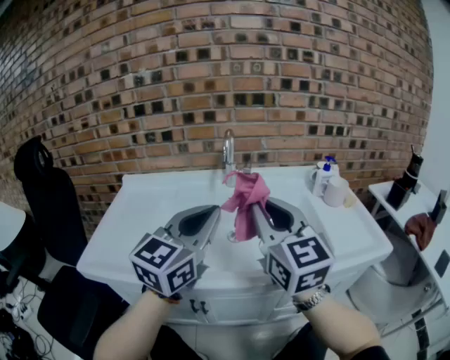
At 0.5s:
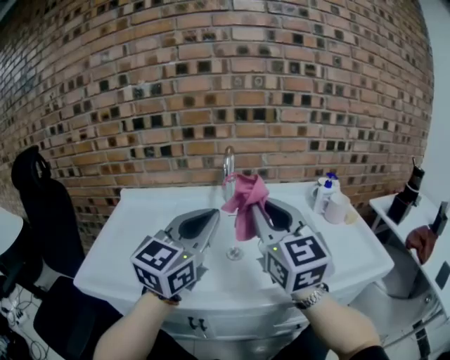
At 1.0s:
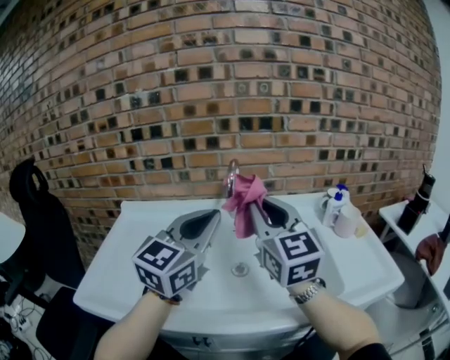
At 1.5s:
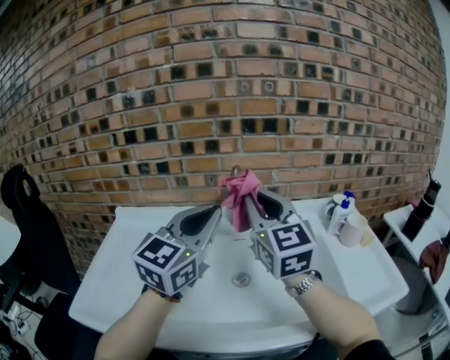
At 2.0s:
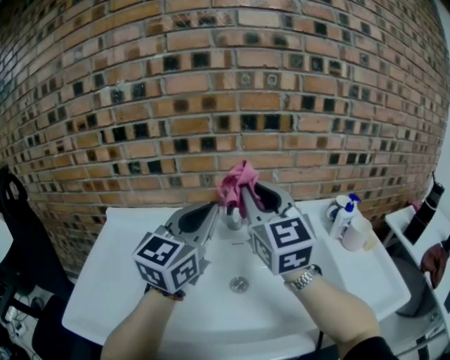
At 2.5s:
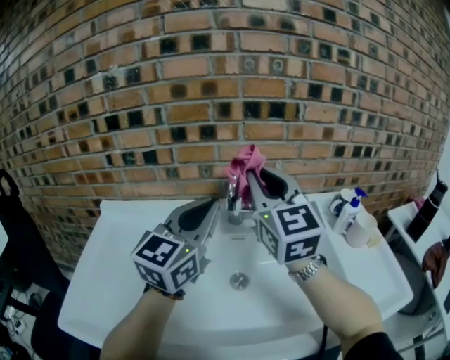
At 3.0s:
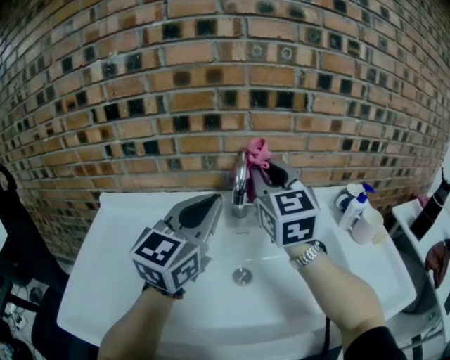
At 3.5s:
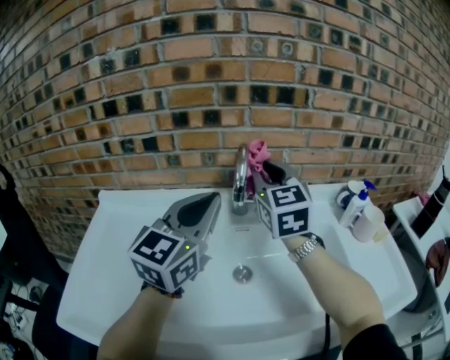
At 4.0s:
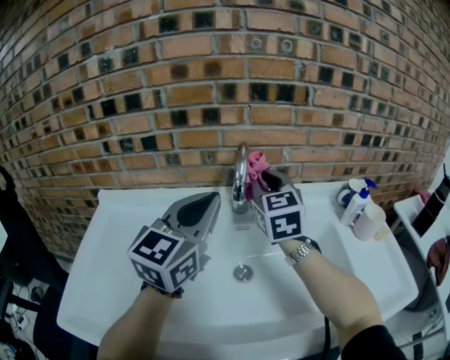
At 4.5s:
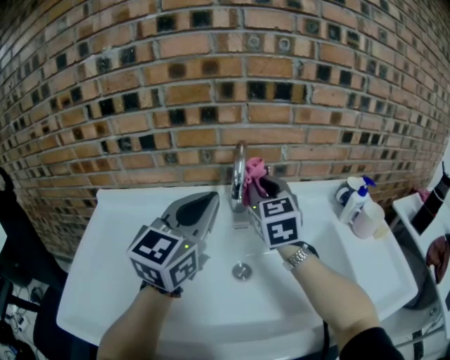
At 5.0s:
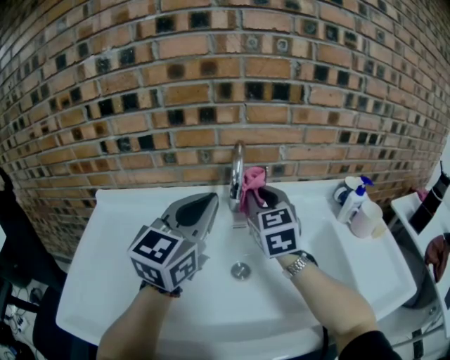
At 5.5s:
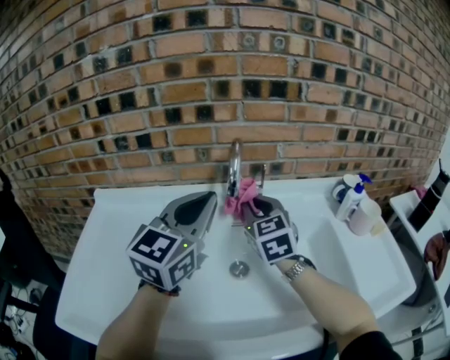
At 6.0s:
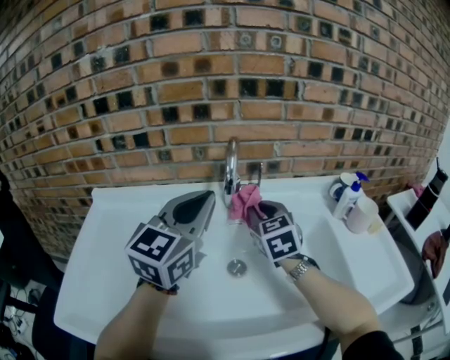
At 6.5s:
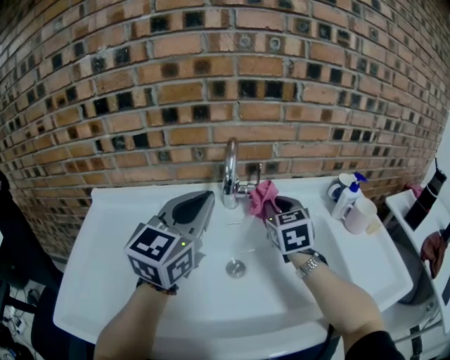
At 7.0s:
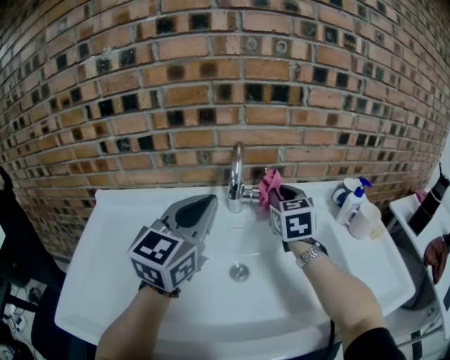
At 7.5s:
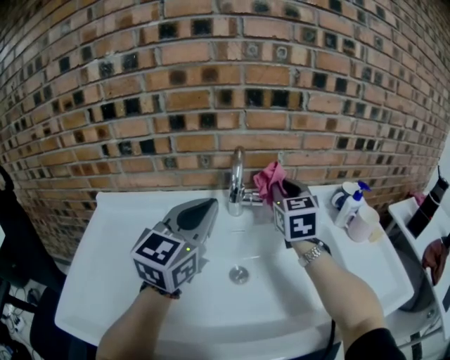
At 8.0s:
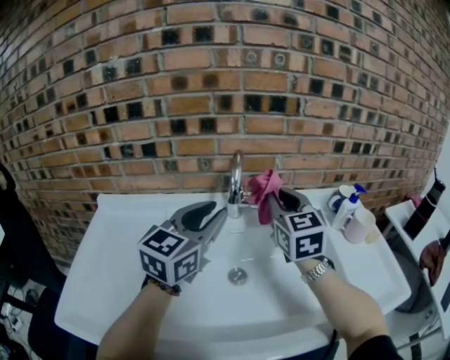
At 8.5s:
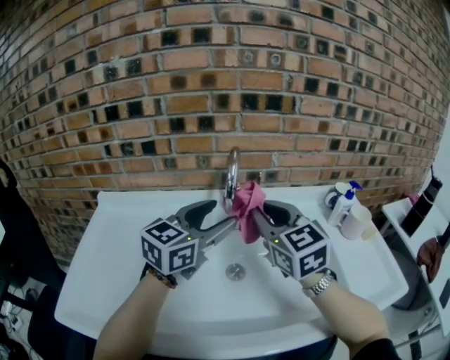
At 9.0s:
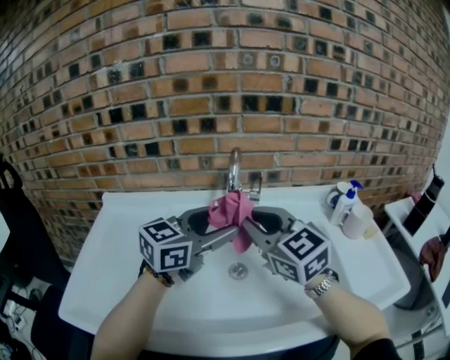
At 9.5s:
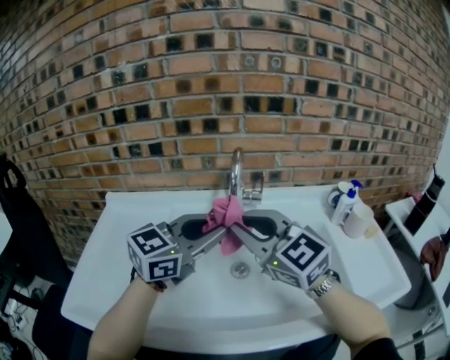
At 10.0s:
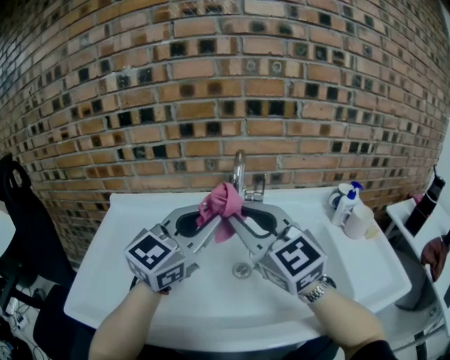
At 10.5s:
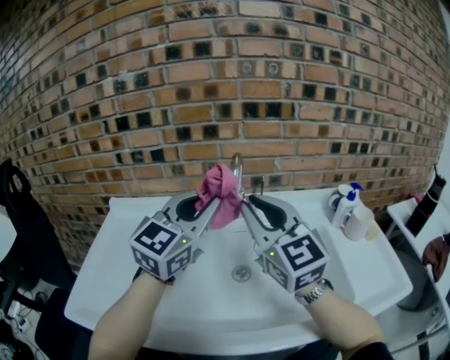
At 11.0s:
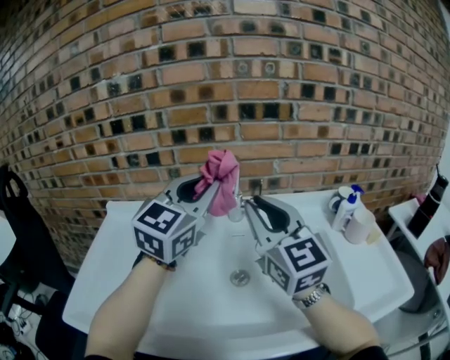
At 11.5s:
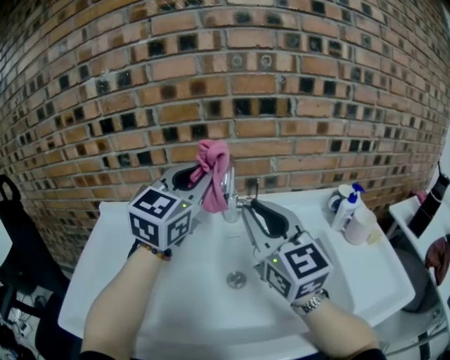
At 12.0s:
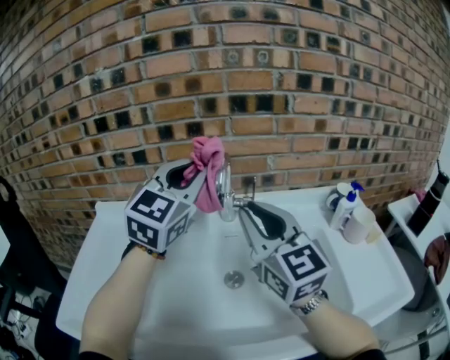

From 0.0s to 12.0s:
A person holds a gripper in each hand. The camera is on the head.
From 0.0s to 2.0s: Both grippers move forward, some 20 cm.
From 2.0s to 4.0s: The right gripper travels forward and downward by some 15 cm.
From 4.0s to 6.0s: The right gripper shifts some 10 cm downward.
From 6.0s to 8.0s: The right gripper travels upward by roughly 10 cm.
From 8.0s to 10.0s: The right gripper goes some 20 cm backward and to the left, and swivels roughly 30 degrees. Meanwhile the left gripper heads backward, covering some 5 cm, and opens and closes again.
From 10.0s to 12.0s: The right gripper is displaced to the right and forward by approximately 10 cm, while the left gripper moves forward and upward, about 15 cm.

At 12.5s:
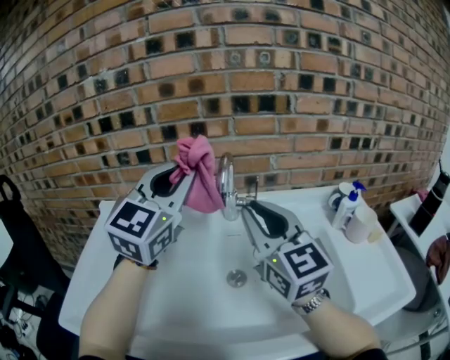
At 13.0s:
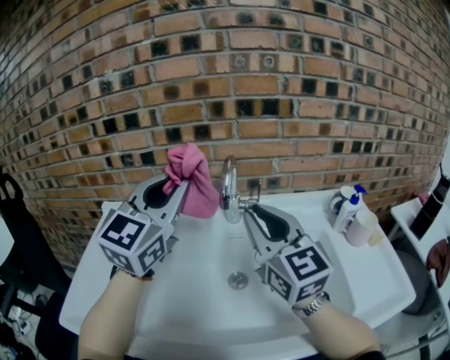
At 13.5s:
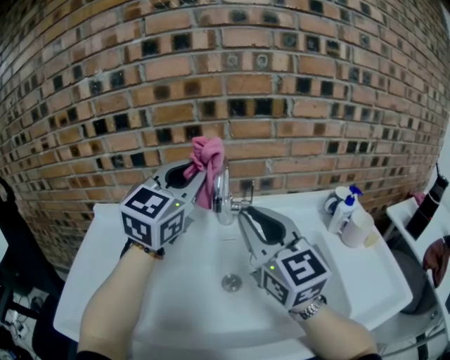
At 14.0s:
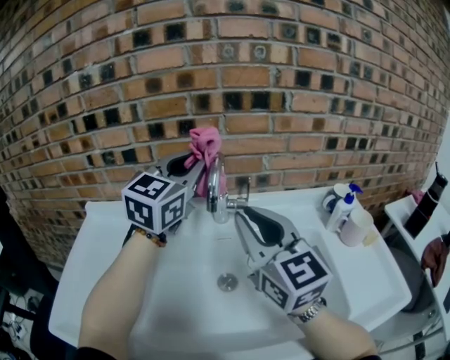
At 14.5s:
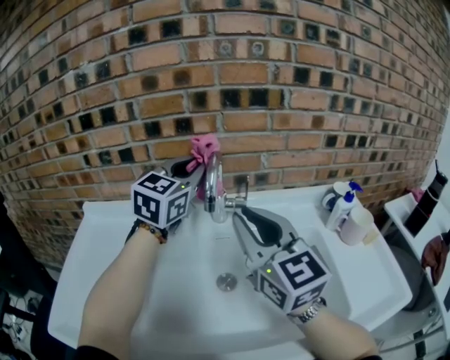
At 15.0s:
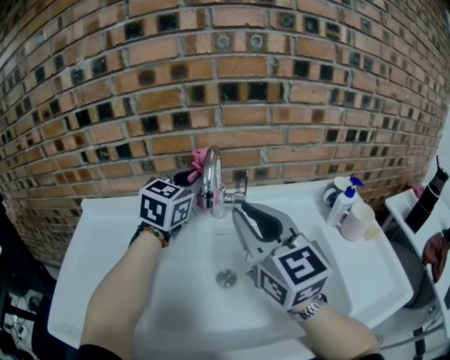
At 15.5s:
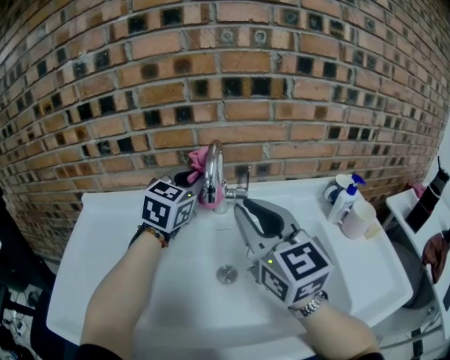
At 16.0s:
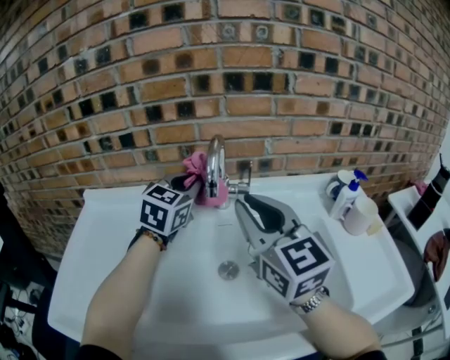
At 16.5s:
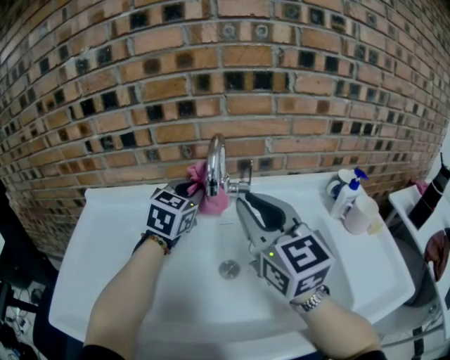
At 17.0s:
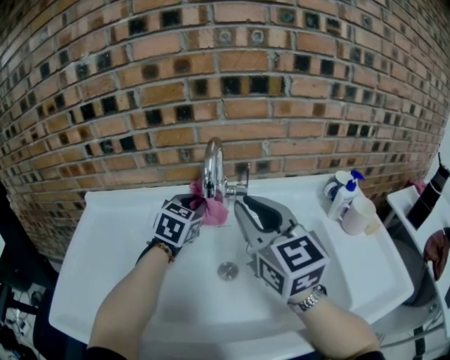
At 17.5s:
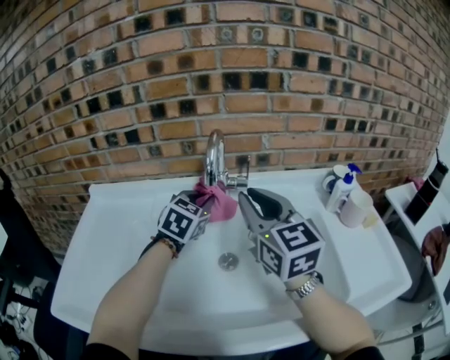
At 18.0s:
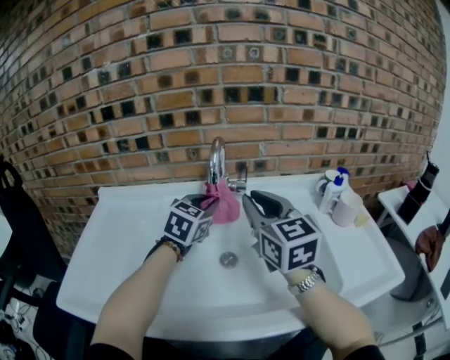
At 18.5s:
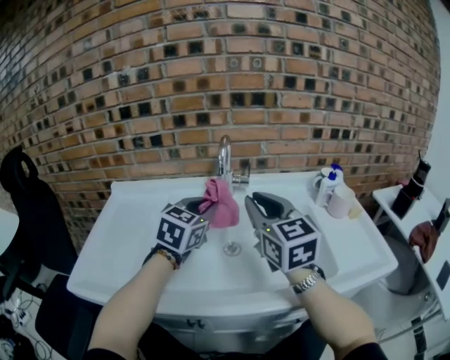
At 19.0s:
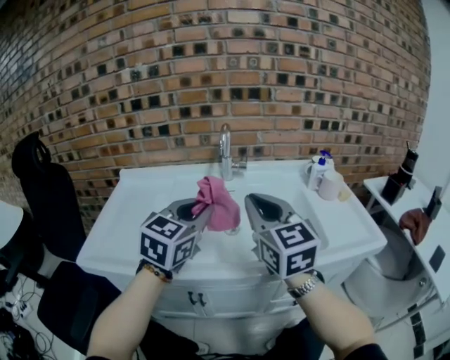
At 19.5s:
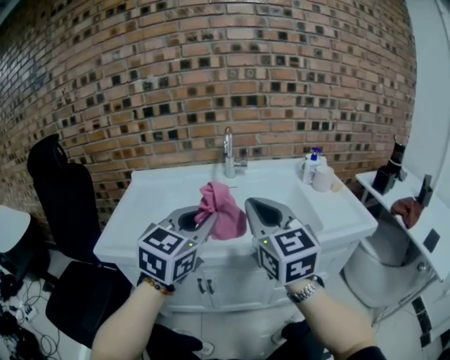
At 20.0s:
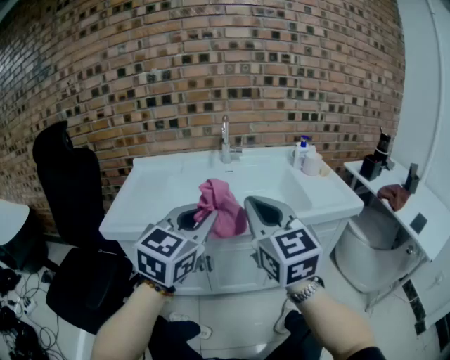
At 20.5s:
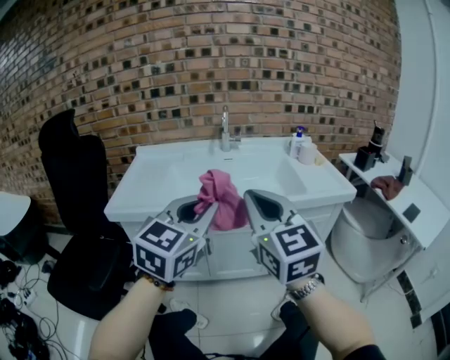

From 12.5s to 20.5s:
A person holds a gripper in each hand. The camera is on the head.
From 12.5s to 14.5s: The left gripper travels forward and downward by approximately 15 cm.
From 14.5s to 16.5s: The left gripper goes roughly 10 cm downward.
From 16.5s to 18.5s: The right gripper goes some 10 cm backward; the left gripper is displaced backward by some 15 cm.
From 18.5s to 20.5s: Both grippers move backward, some 40 cm.

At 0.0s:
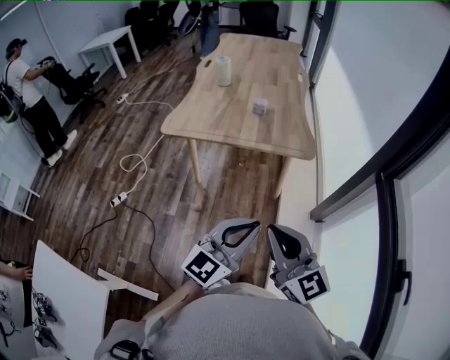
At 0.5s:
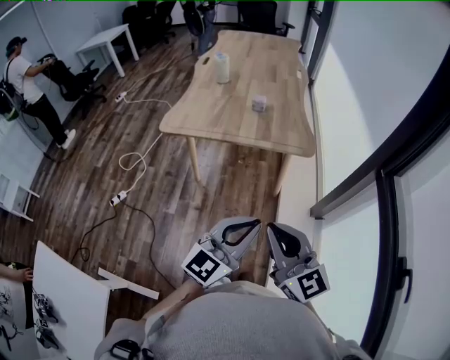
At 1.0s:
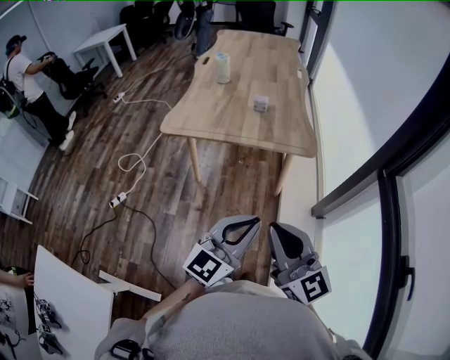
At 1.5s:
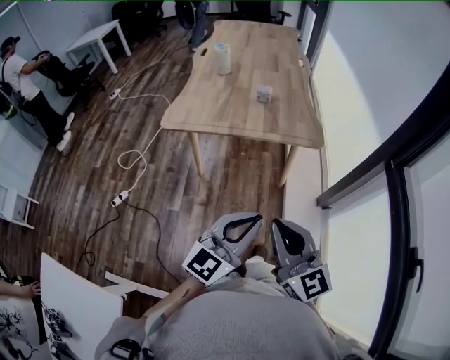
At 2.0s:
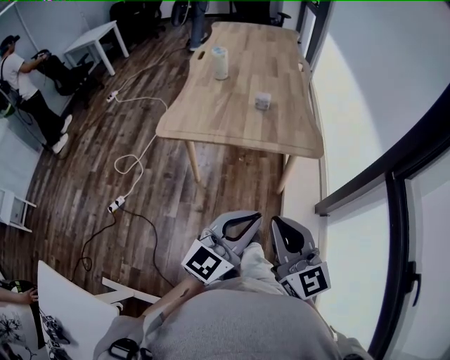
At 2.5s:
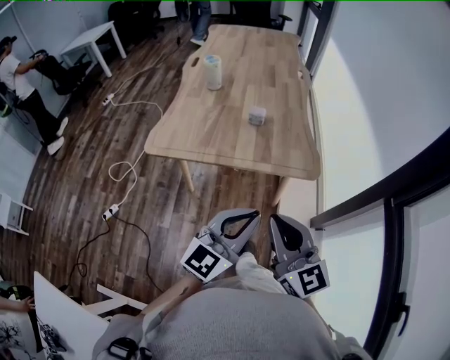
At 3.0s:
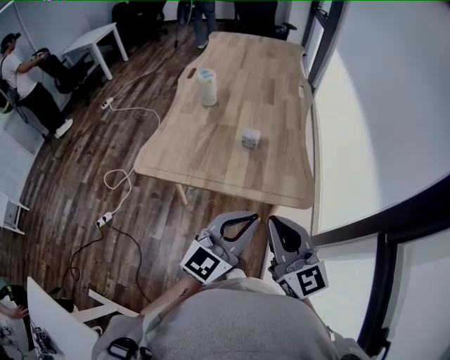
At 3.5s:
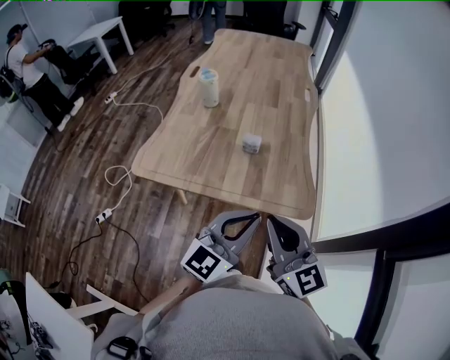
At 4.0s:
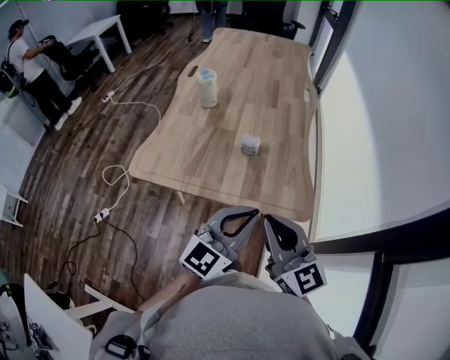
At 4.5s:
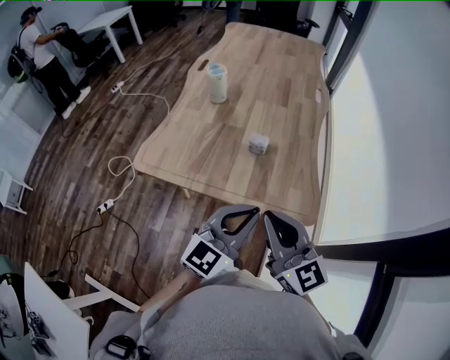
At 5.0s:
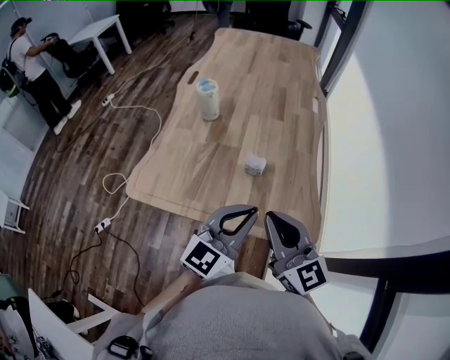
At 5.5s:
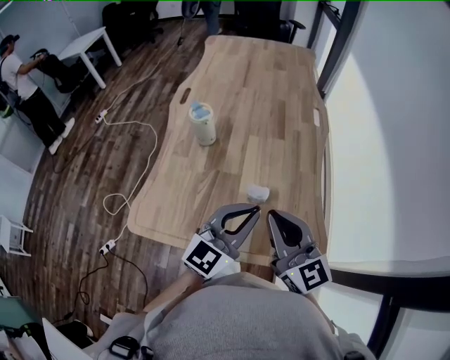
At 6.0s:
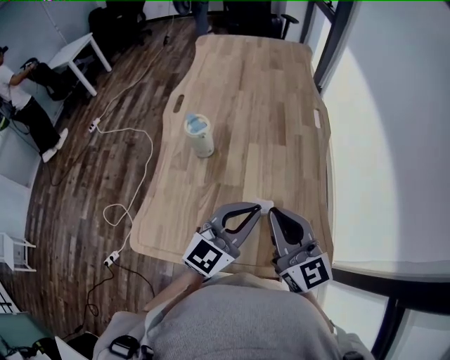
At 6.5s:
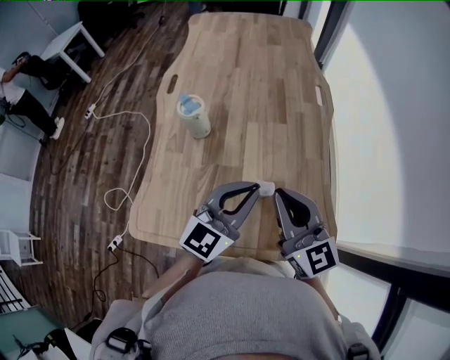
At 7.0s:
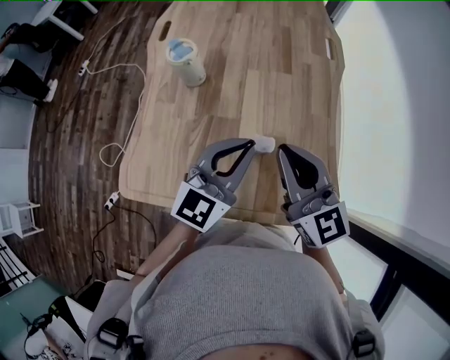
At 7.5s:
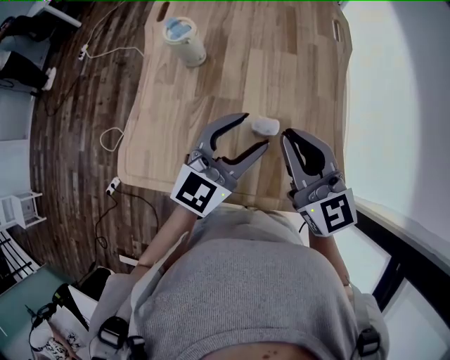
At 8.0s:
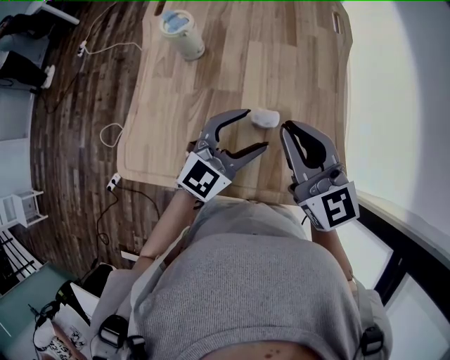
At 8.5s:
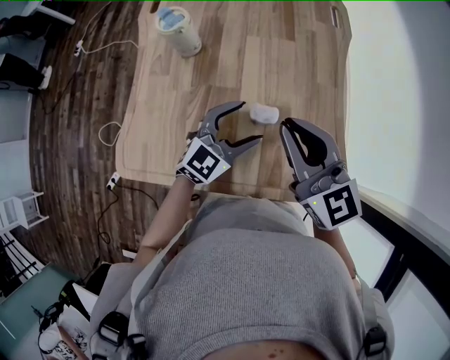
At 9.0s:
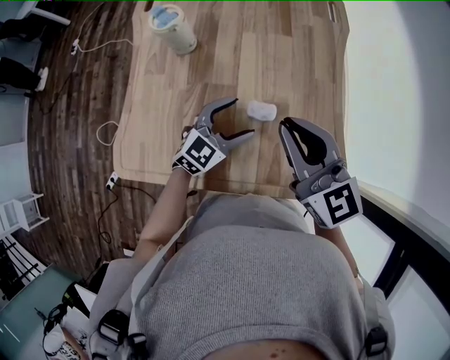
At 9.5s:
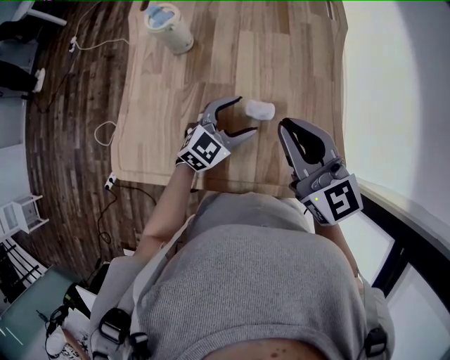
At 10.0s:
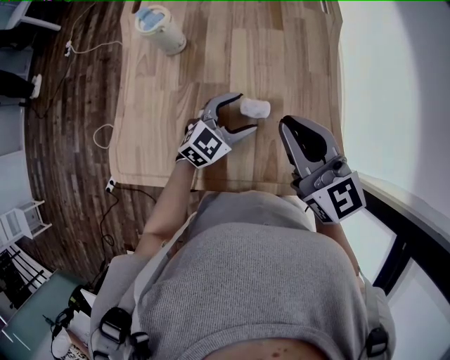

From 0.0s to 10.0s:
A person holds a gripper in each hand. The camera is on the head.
From 0.0s to 2.0s: The two grippers go roughly 5 cm forward.
From 2.0s to 4.0s: The two grippers go approximately 25 cm forward.
From 4.0s to 6.0s: Both grippers travel together forward, approximately 25 cm.
From 6.0s to 8.0s: The left gripper travels downward by roughly 10 cm, and opens; the right gripper ends up some 5 cm from where it was.
From 8.0s to 10.0s: The left gripper moves downward, about 15 cm.
